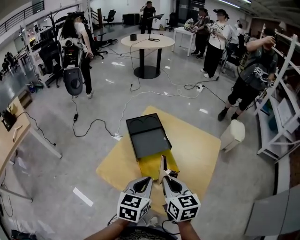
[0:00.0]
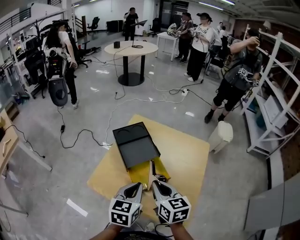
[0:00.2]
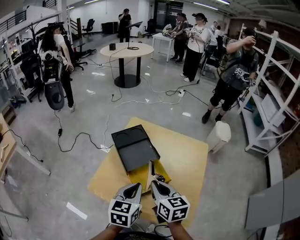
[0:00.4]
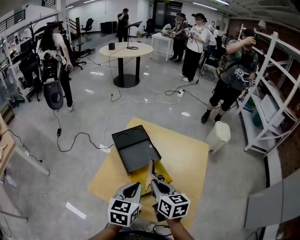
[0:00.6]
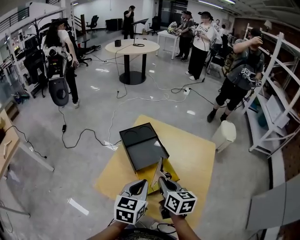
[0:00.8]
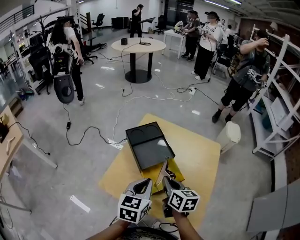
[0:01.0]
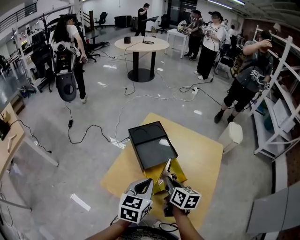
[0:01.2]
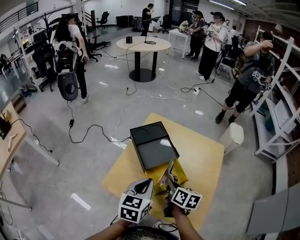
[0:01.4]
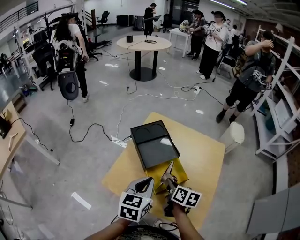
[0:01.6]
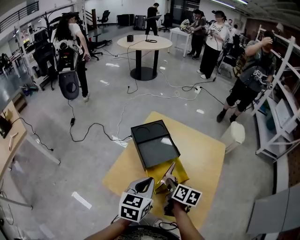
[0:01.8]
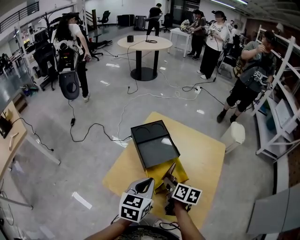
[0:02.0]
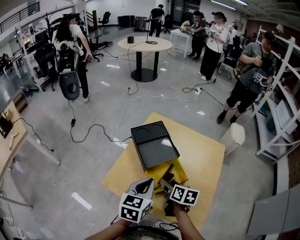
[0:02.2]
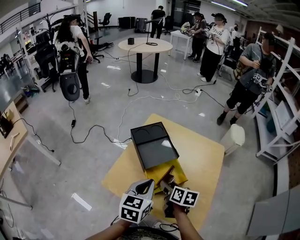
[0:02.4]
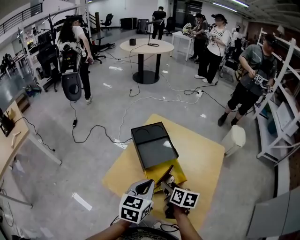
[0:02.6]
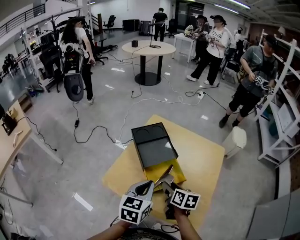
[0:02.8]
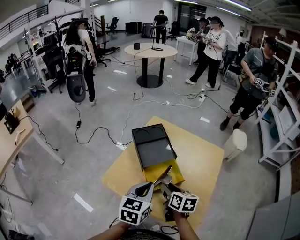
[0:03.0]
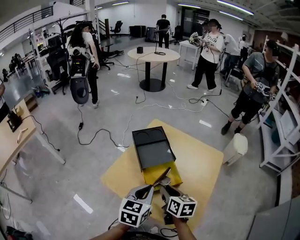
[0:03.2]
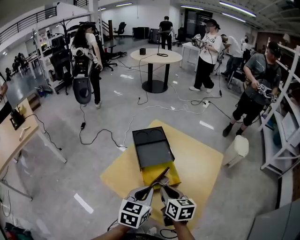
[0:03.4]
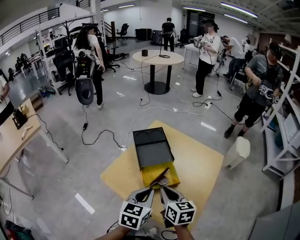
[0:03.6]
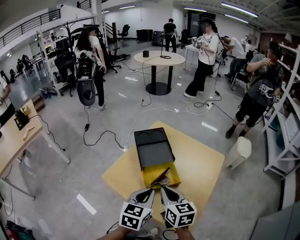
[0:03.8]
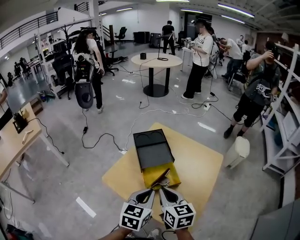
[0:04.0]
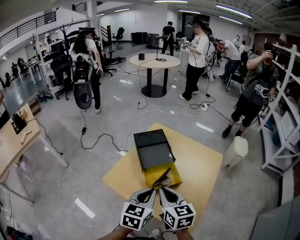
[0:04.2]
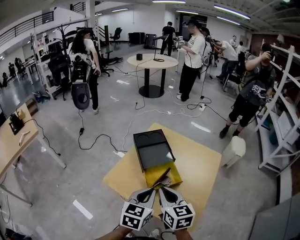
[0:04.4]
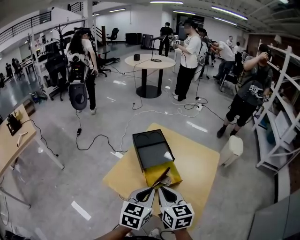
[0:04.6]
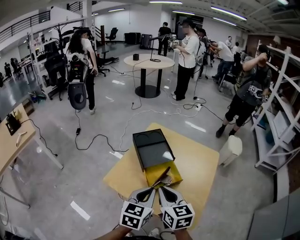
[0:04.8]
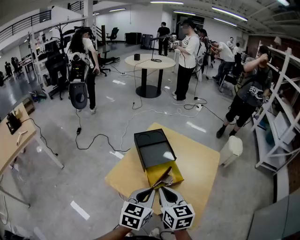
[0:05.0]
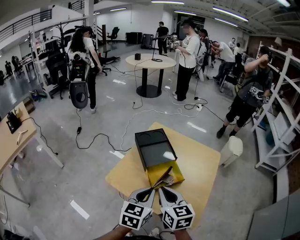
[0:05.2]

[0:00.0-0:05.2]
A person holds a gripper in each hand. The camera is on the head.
0:00.0 to 0:01.8: The two grippers travel together, to the left and forward, about 50 cm. The right gripper turns by about 40 degrees.
0:01.8 to 0:03.4: The two grippers travel together, backward and to the right, about 70 cm. The right gripper changes its angle by some 30 degrees, and opens, then closes once more.
0:03.4 to 0:05.2: The pair of grippers is taken to the left and backward, roughly 40 cm. The right gripper goes approximately 15 cm upward.

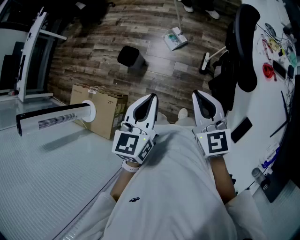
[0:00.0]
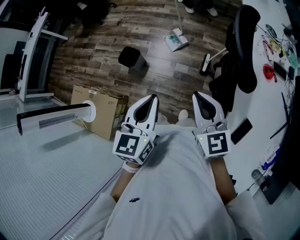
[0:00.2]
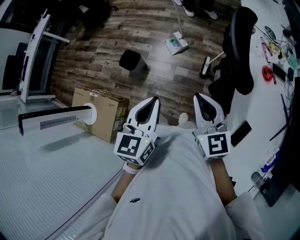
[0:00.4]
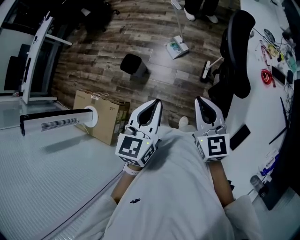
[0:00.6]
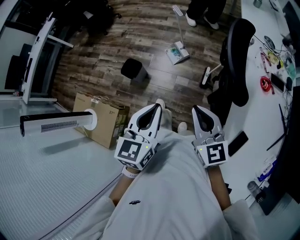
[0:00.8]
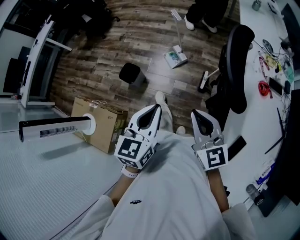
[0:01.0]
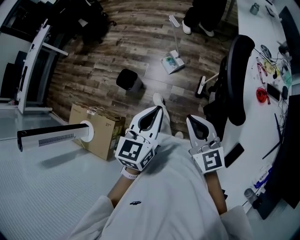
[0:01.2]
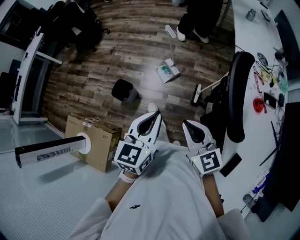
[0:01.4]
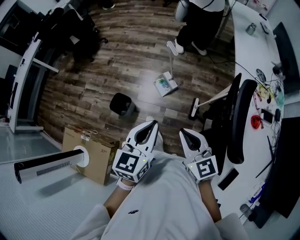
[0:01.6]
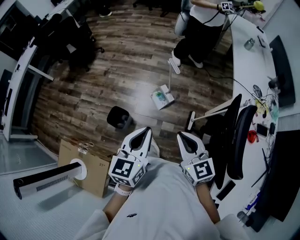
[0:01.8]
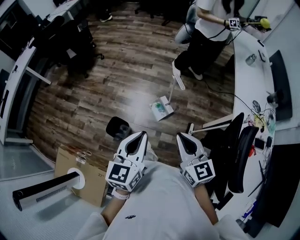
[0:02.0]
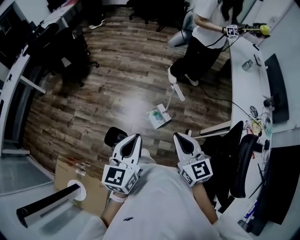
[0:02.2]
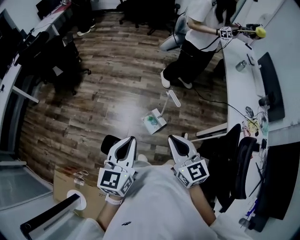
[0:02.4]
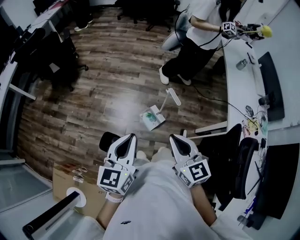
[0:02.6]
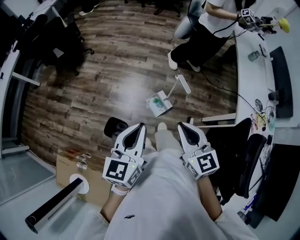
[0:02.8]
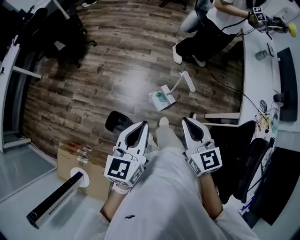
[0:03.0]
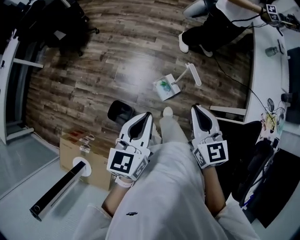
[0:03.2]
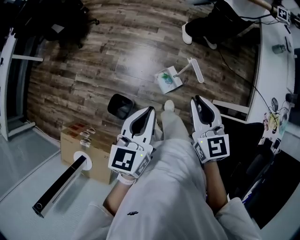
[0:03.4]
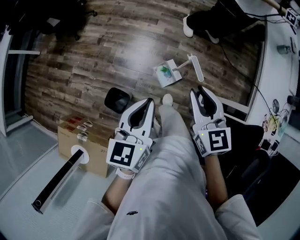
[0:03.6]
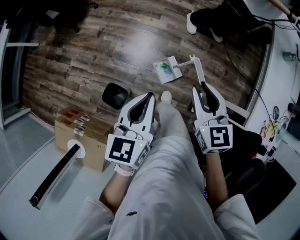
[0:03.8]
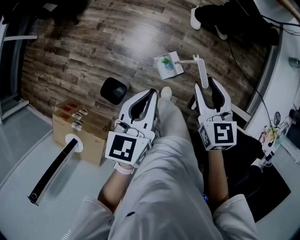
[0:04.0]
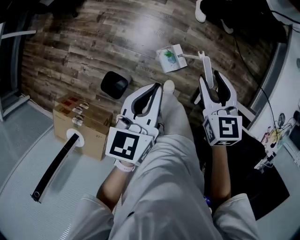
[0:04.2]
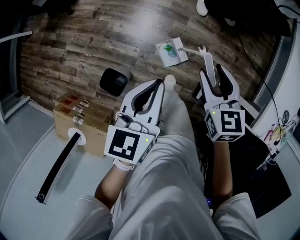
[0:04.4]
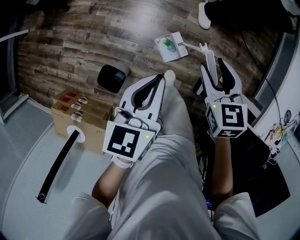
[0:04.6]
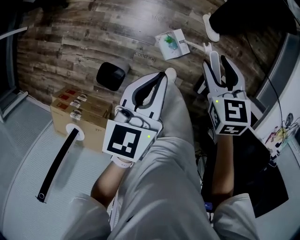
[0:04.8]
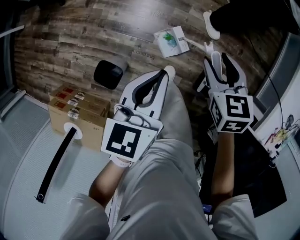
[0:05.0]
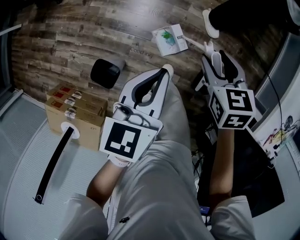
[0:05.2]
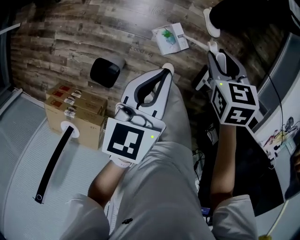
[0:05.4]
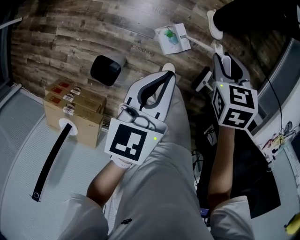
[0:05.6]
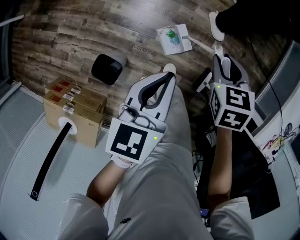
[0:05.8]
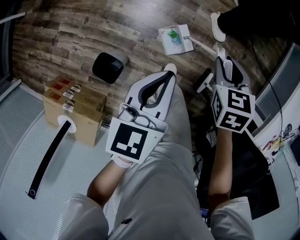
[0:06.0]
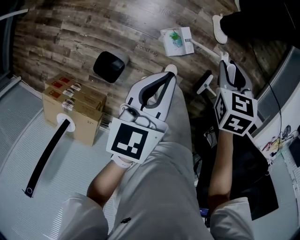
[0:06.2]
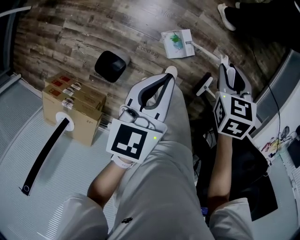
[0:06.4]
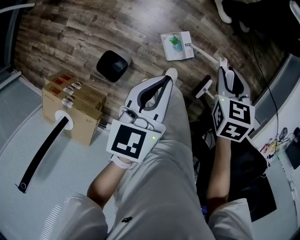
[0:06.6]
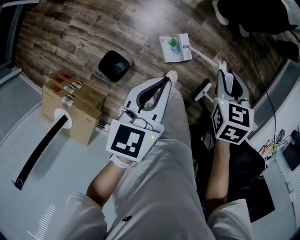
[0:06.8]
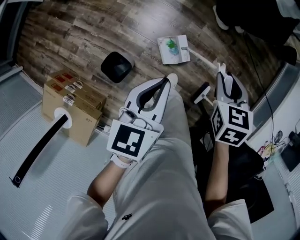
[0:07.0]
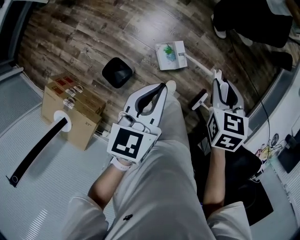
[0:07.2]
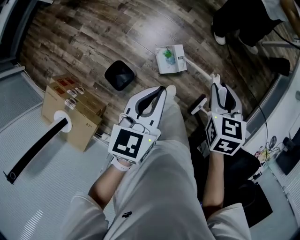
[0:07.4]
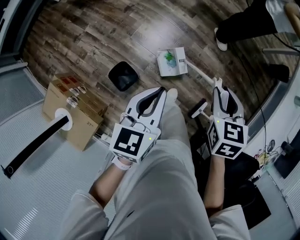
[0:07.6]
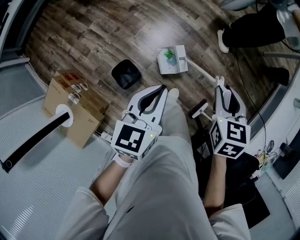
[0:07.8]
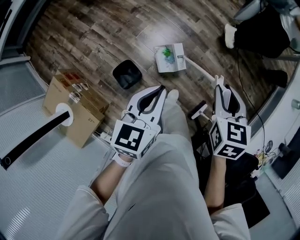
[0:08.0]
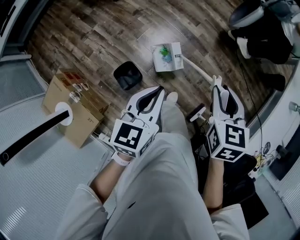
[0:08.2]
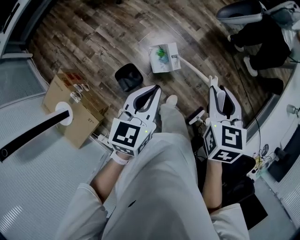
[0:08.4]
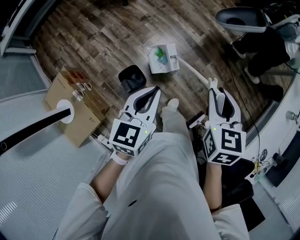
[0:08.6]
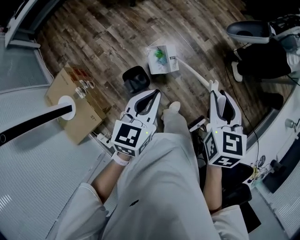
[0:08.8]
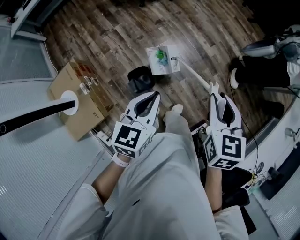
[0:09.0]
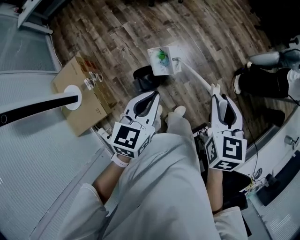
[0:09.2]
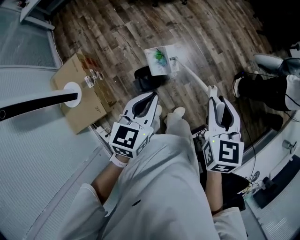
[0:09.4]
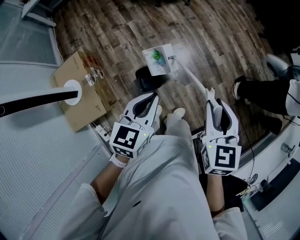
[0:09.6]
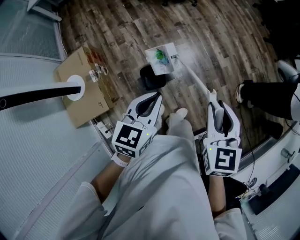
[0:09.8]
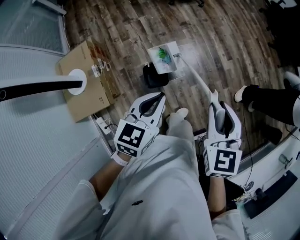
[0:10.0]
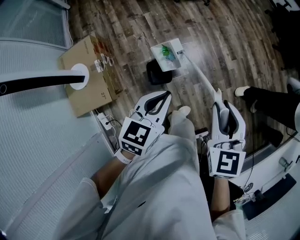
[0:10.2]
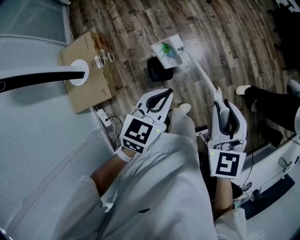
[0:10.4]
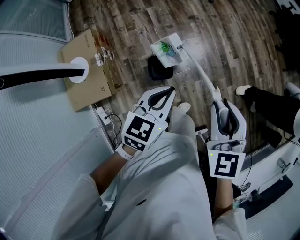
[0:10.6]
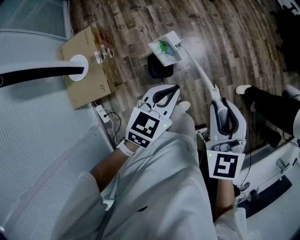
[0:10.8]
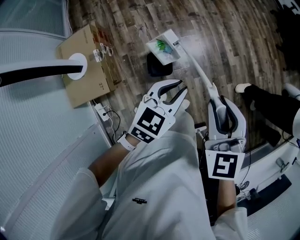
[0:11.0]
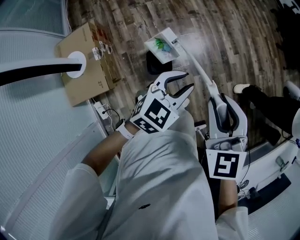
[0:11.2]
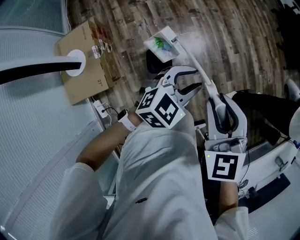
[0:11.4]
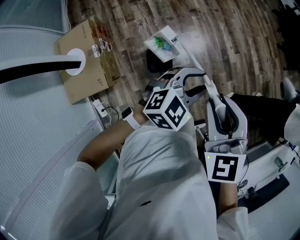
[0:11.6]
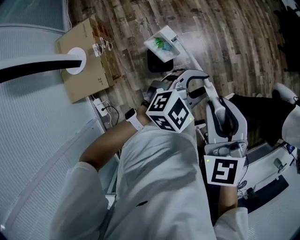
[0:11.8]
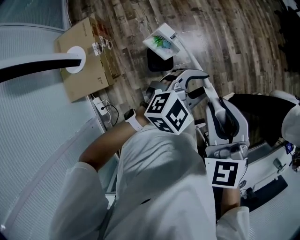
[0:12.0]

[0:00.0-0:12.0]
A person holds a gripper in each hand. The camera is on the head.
0:00.0 to 0:01.6: The grippers both shift forward by some 20 cm.
0:01.6 to 0:03.0: The left gripper goes approximately 30 cm forward and to the left, while the right gripper heads forward, covering some 30 cm.
0:03.0 to 0:04.4: Both grippers travel together forward and downward, about 25 cm. The right gripper opens.
0:04.4 to 0:06.0: The two grippers go roughly 10 cm downward. The right gripper changes its angle by roughly 20 degrees, and closes its fingers.
0:06.0 to 0:07.6: The left gripper is displaced upward, to the left and backward by some 20 cm. The right gripper shifts roughly 20 cm upward, backward and to the left.
0:07.6 to 0:09.0: The right gripper moves to the left and upward, some 20 cm, and rotates about 20 degrees; the left gripper goes about 15 cm to the left and backward.
0:09.0 to 0:10.4: The left gripper moves to the left, about 5 cm. The right gripper heads to the left, covering roughly 15 cm, and swivels approximately 30 degrees.
0:10.4 to 0:12.0: The left gripper moves to the right and forward, some 10 cm, changes its angle by approximately 40 degrees, and opens up.

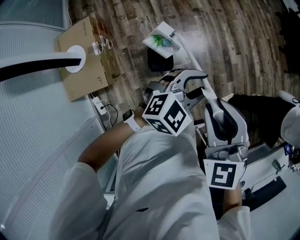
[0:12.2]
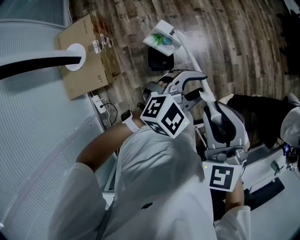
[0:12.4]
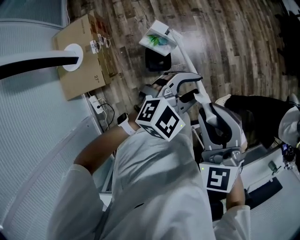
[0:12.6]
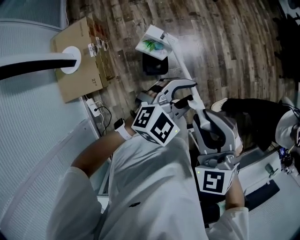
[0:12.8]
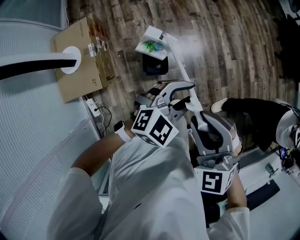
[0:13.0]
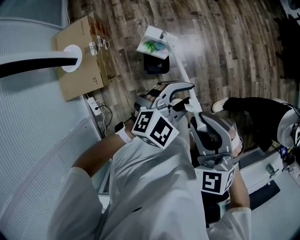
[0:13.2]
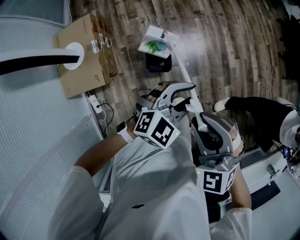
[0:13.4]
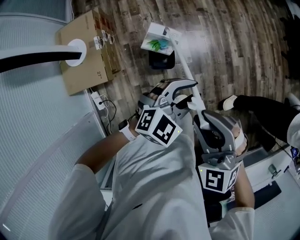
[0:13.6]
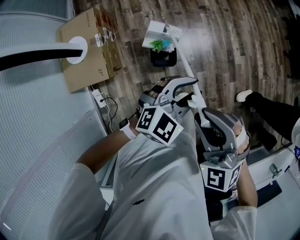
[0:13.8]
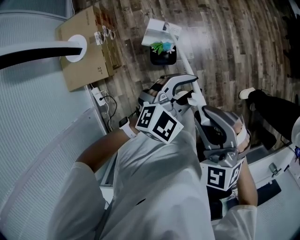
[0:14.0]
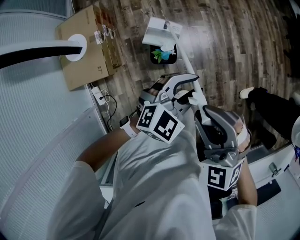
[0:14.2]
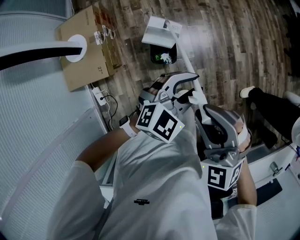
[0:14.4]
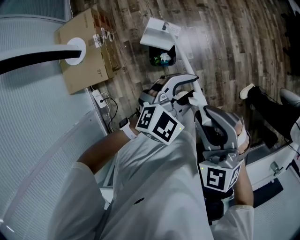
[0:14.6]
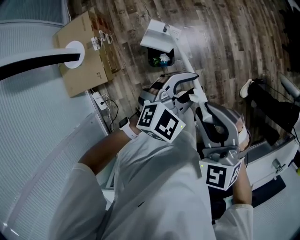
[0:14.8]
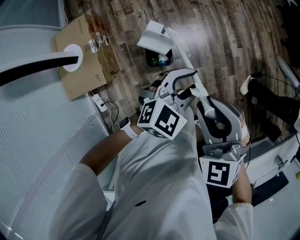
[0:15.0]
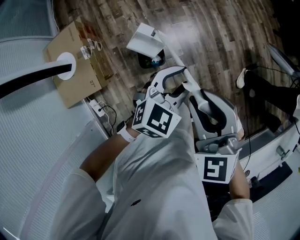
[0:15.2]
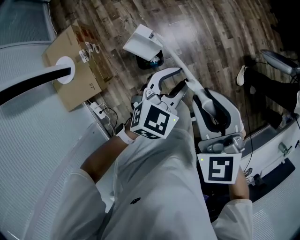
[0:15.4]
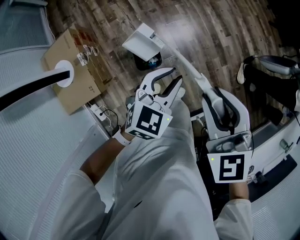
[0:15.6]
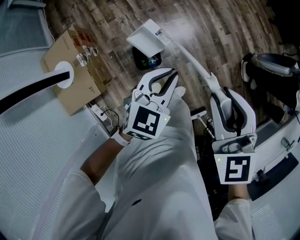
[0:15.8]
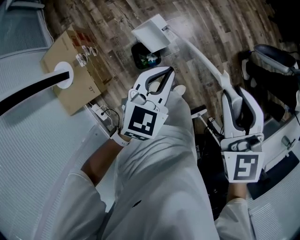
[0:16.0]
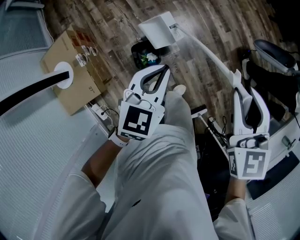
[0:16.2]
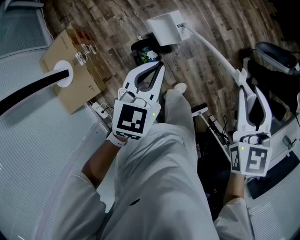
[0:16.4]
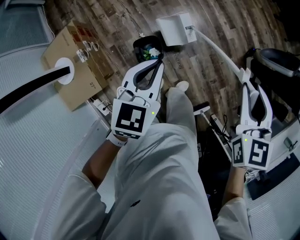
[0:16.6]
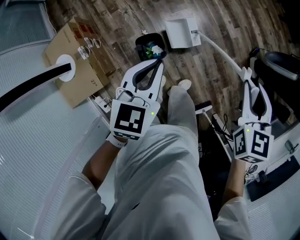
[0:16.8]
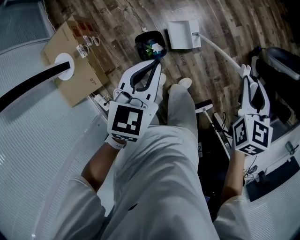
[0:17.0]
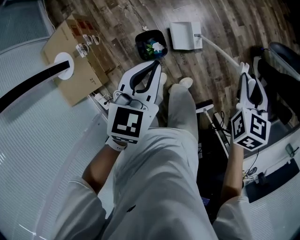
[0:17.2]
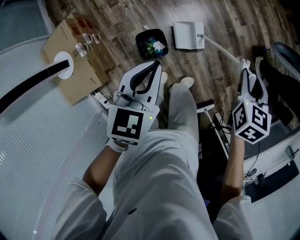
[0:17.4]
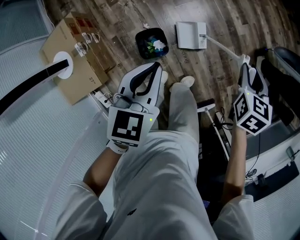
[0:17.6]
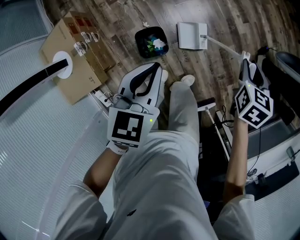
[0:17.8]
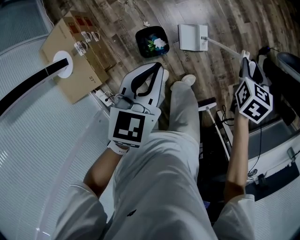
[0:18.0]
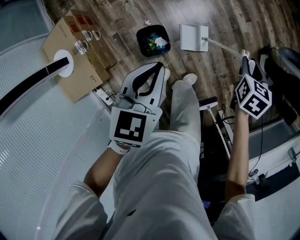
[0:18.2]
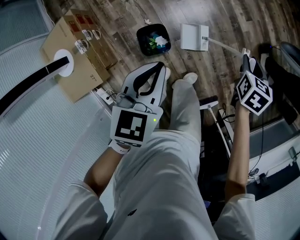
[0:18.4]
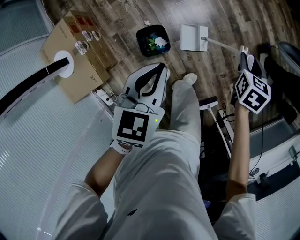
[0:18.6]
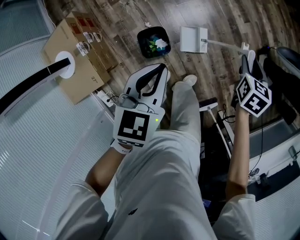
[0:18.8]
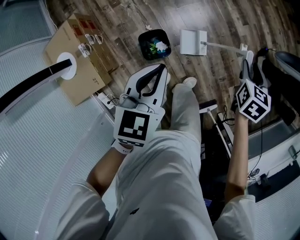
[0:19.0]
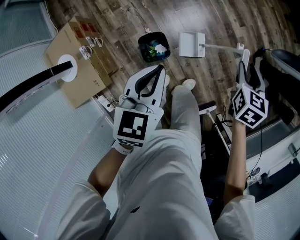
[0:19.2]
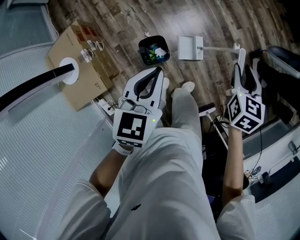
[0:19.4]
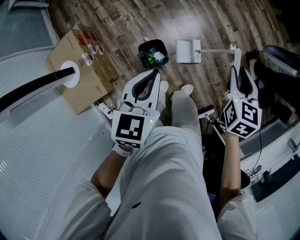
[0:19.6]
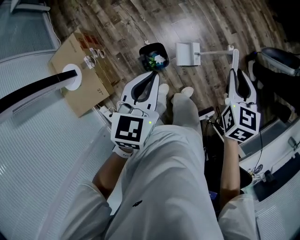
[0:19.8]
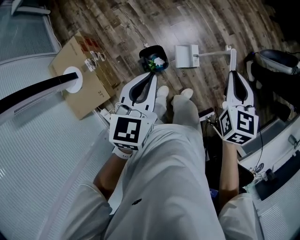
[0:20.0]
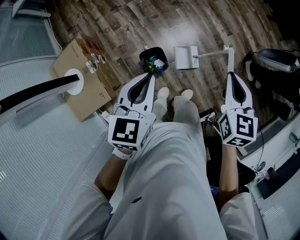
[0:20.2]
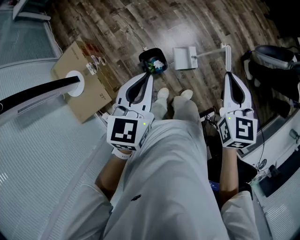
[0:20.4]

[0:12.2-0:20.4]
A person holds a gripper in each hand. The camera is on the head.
0:12.2 to 0:13.8: The right gripper shifts by some 5 cm, and swivels roughly 30 degrees.
0:13.8 to 0:15.4: The right gripper travels forward by some 5 cm, and swivels about 30 degrees.
0:15.4 to 0:17.2: The right gripper is displaced to the right, downward and forward by about 25 cm, and rotates about 50 degrees. The left gripper is displaced to the left by some 5 cm, and closes.
0:17.2 to 0:18.8: The right gripper heads downward and forward, covering roughly 15 cm.
0:18.8 to 0:20.4: The right gripper shifts some 30 cm upward and backward, swivels approximately 30 degrees, and closes its fingers. Meanwhile the left gripper heads upward and backward, covering roughly 15 cm.
